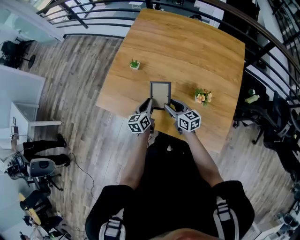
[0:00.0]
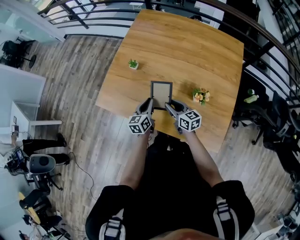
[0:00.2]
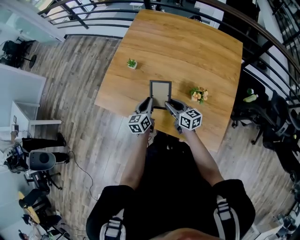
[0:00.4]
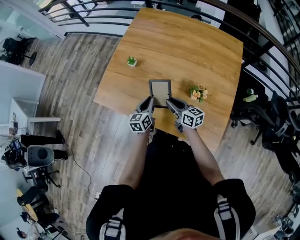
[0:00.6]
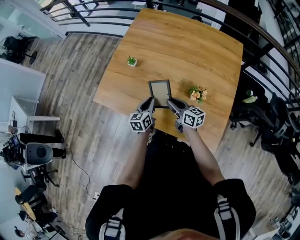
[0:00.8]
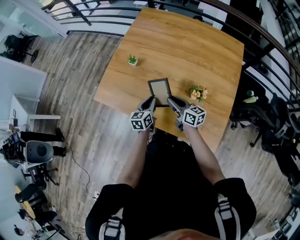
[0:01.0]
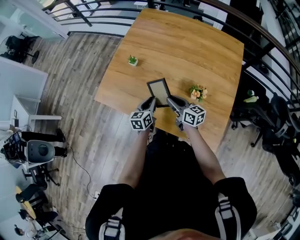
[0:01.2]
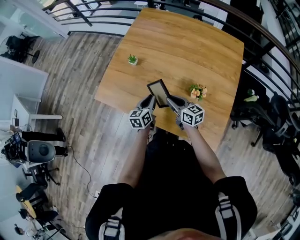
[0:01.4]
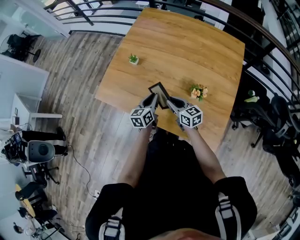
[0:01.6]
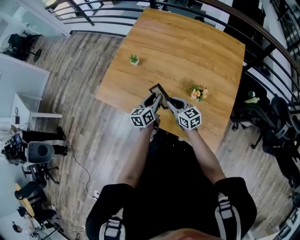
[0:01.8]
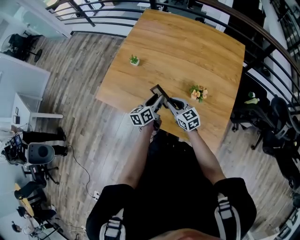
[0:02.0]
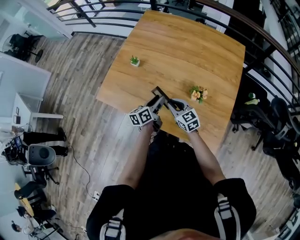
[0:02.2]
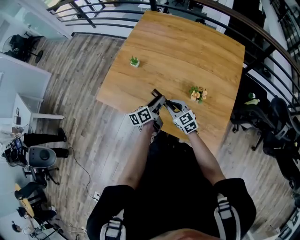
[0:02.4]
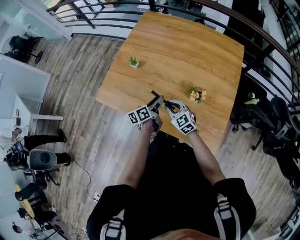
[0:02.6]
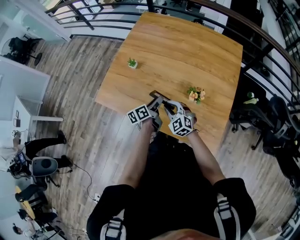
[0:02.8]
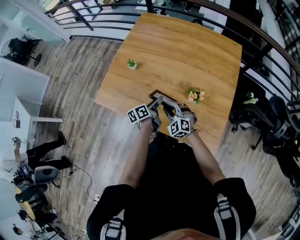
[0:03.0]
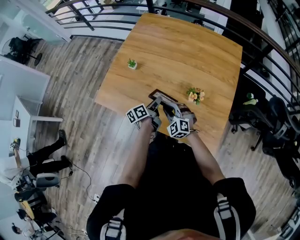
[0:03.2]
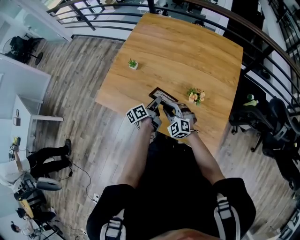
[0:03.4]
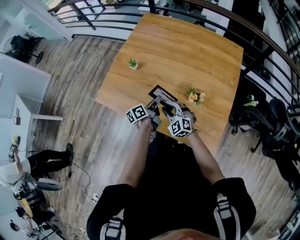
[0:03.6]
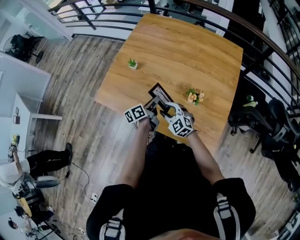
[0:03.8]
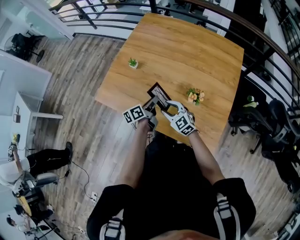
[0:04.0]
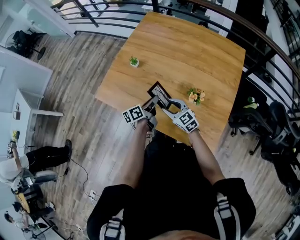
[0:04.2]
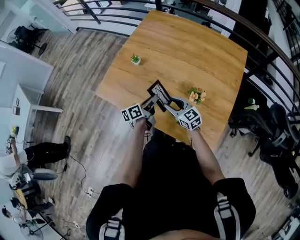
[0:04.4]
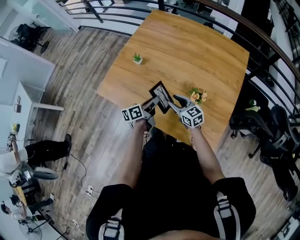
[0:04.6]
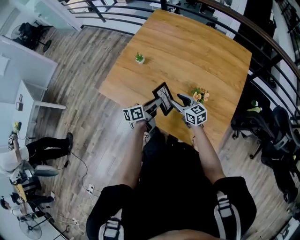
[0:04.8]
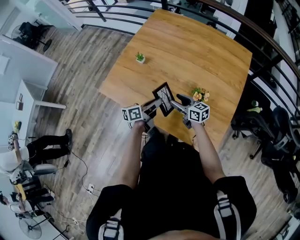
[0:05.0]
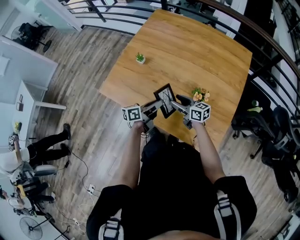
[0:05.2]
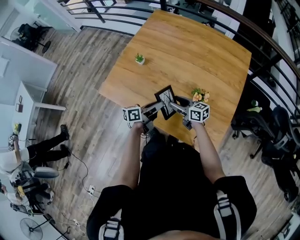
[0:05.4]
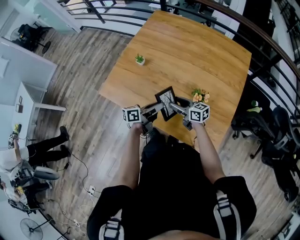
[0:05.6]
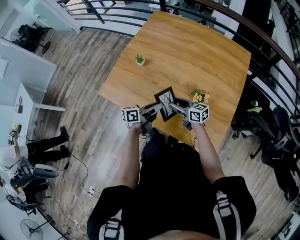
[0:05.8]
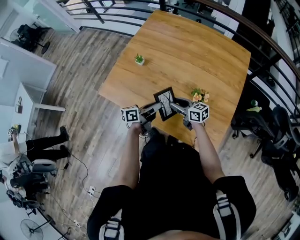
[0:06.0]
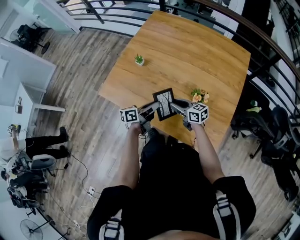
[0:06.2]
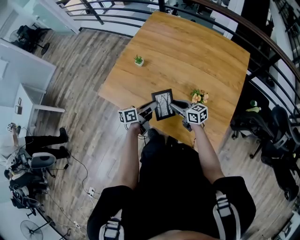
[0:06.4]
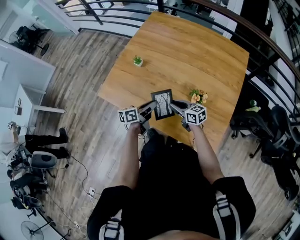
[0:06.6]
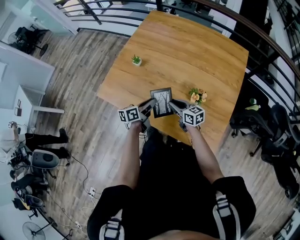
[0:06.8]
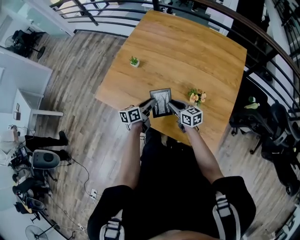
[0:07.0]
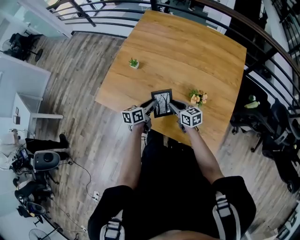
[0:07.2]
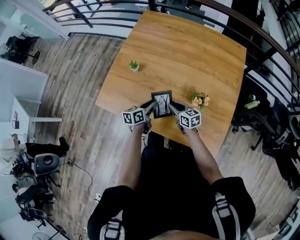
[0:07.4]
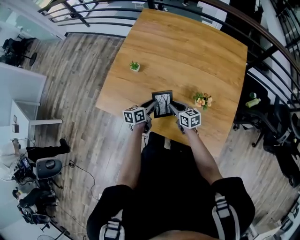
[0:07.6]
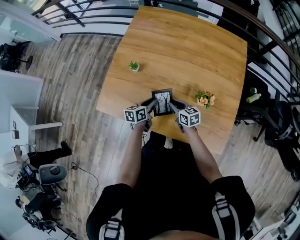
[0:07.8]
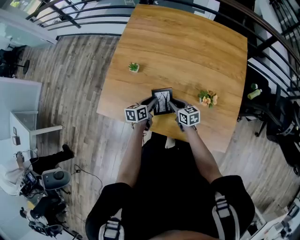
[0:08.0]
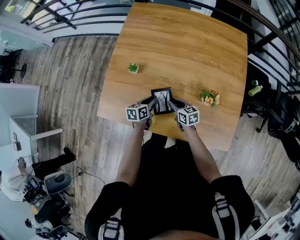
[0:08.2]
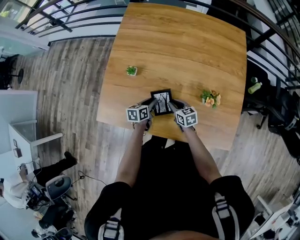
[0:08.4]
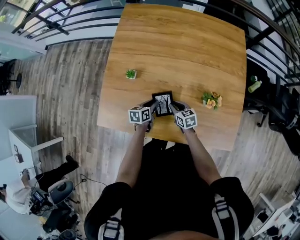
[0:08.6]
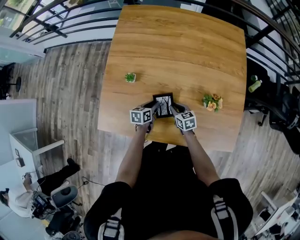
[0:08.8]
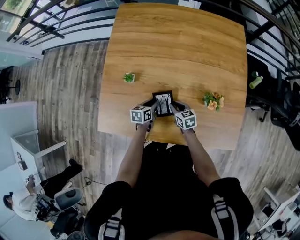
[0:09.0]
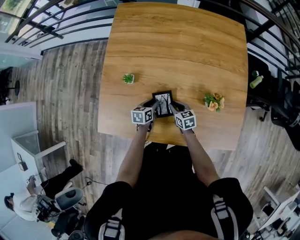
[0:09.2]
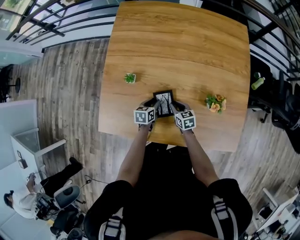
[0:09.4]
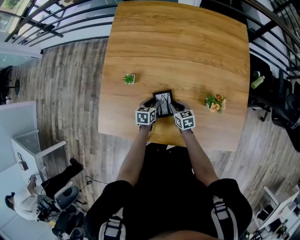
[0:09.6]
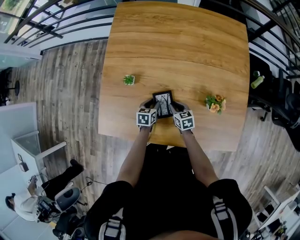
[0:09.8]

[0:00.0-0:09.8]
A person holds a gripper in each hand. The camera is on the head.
0:00.0 to 0:01.4: The left gripper shifts by roughly 5 cm.
0:01.4 to 0:02.8: The right gripper twists about 50 degrees counterclockwise, seen from behind, while the left gripper swivels about 30 degrees, and opens up.
0:02.8 to 0:04.2: The right gripper changes its angle by some 30 degrees.
0:04.2 to 0:05.6: The left gripper swivels approximately 20 degrees, while the right gripper swivels approximately 40 degrees.
0:05.6 to 0:07.0: The right gripper closes its fingers. Meanwhile the left gripper changes place by approximately 5 cm.
0:07.0 to 0:08.4: Both grippers travel together downward, forward and to the left, approximately 15 cm. The left gripper changes its angle by roughly 20 degrees; the right gripper rotates roughly 20 degrees.
0:08.4 to 0:09.8: Both grippers travel together downward, about 5 cm.

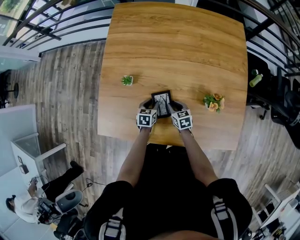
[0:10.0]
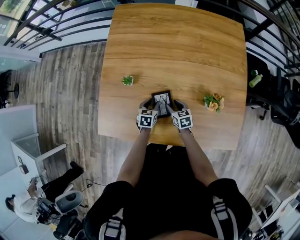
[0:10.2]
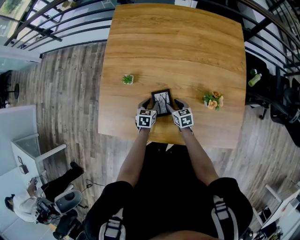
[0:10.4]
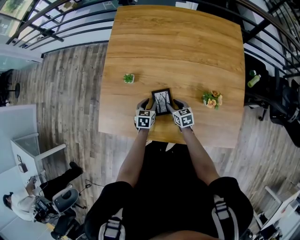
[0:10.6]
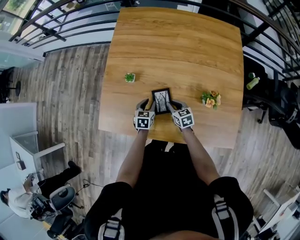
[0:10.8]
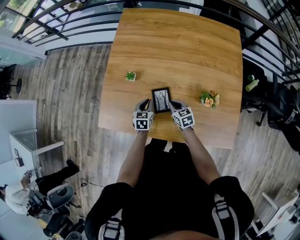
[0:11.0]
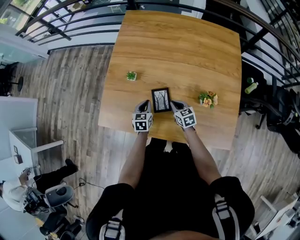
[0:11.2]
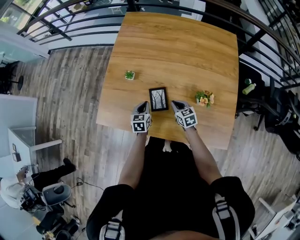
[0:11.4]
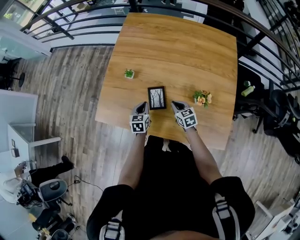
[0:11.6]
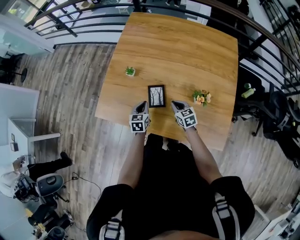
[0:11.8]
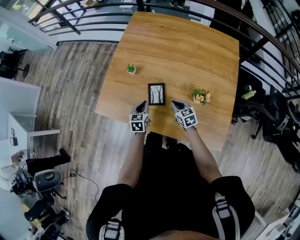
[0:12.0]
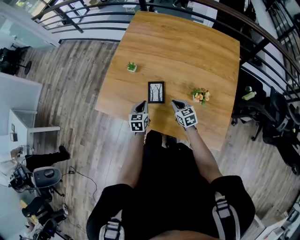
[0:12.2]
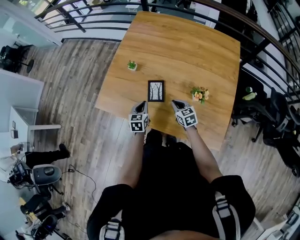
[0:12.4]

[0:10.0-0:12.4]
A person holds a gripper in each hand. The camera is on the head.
0:10.0 to 0:11.2: The grippers both shift upward by about 10 cm. The left gripper closes.
0:11.2 to 0:12.4: The grippers both shift backward by roughly 10 cm.

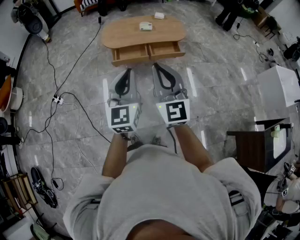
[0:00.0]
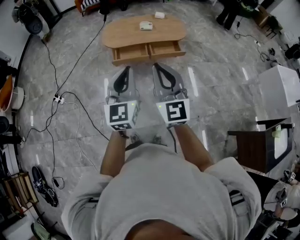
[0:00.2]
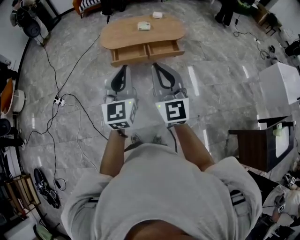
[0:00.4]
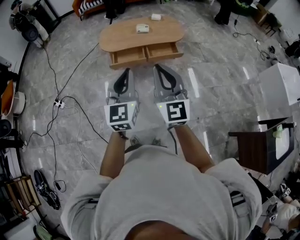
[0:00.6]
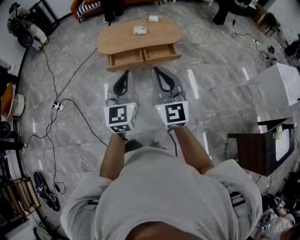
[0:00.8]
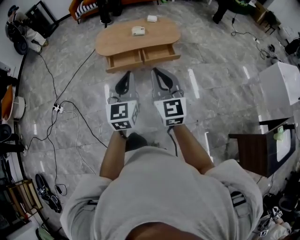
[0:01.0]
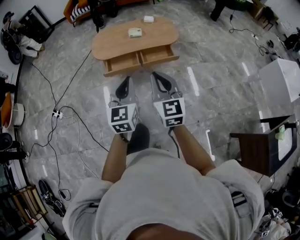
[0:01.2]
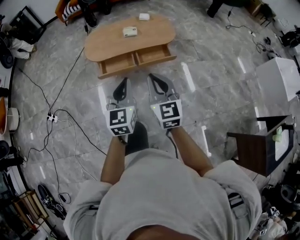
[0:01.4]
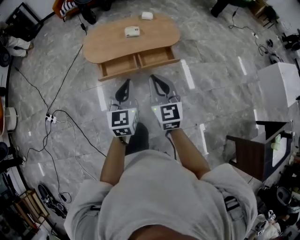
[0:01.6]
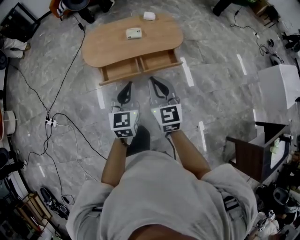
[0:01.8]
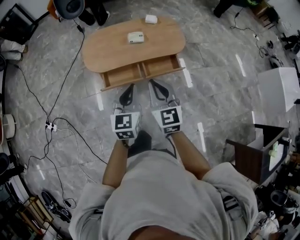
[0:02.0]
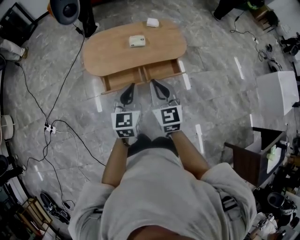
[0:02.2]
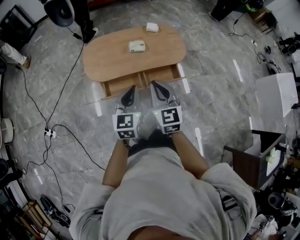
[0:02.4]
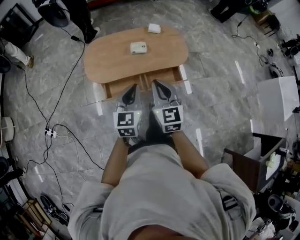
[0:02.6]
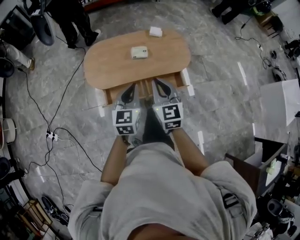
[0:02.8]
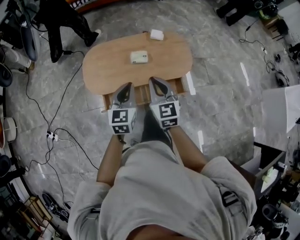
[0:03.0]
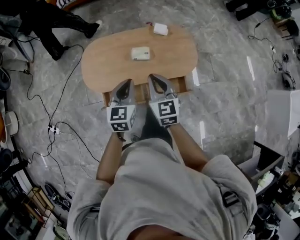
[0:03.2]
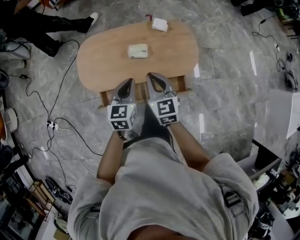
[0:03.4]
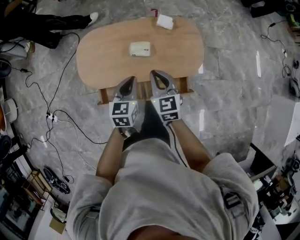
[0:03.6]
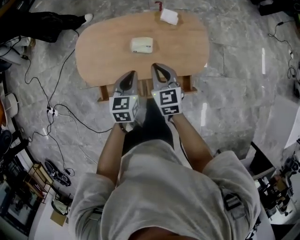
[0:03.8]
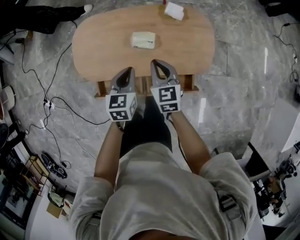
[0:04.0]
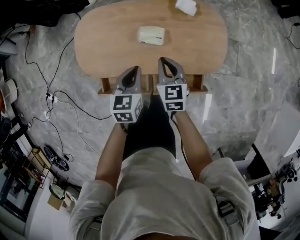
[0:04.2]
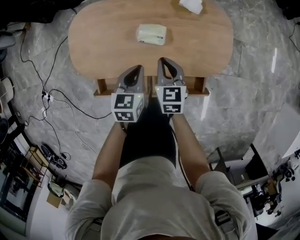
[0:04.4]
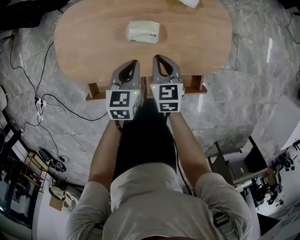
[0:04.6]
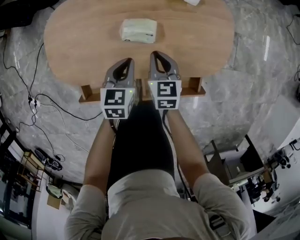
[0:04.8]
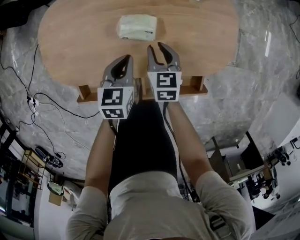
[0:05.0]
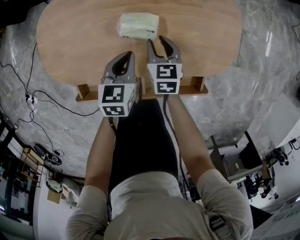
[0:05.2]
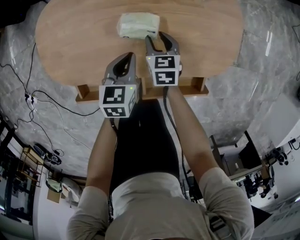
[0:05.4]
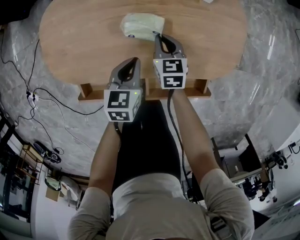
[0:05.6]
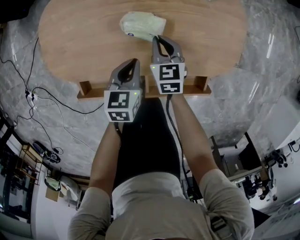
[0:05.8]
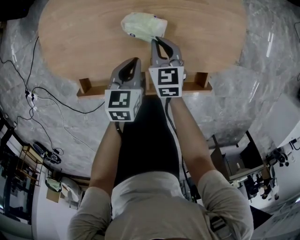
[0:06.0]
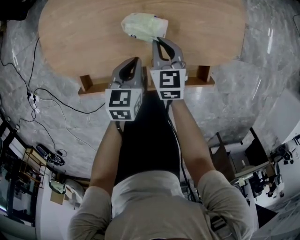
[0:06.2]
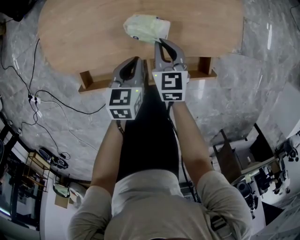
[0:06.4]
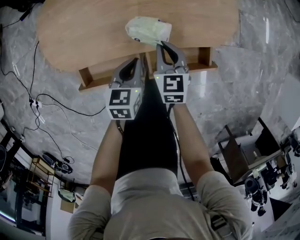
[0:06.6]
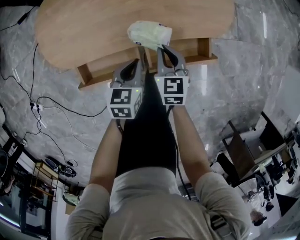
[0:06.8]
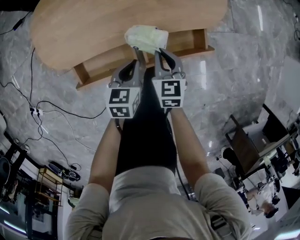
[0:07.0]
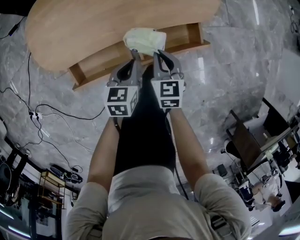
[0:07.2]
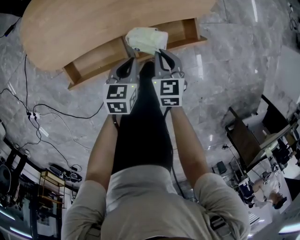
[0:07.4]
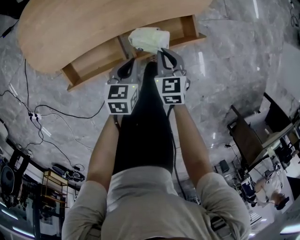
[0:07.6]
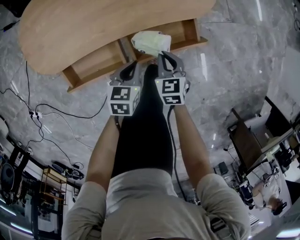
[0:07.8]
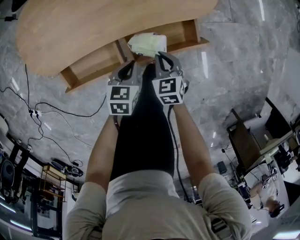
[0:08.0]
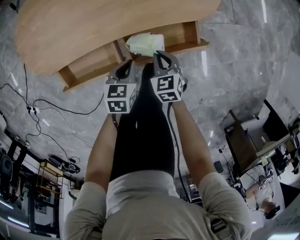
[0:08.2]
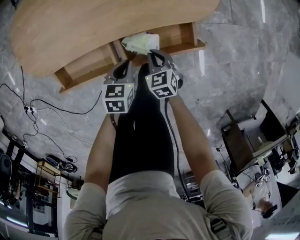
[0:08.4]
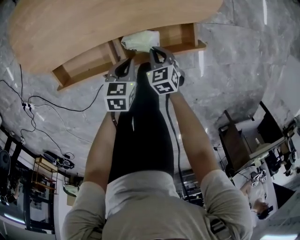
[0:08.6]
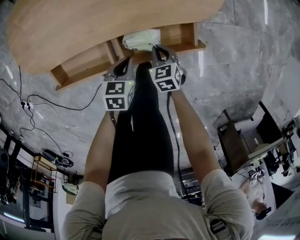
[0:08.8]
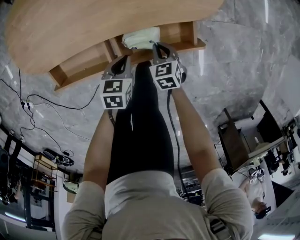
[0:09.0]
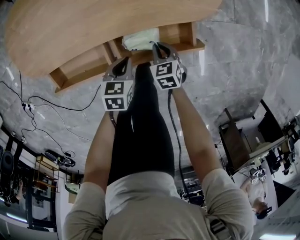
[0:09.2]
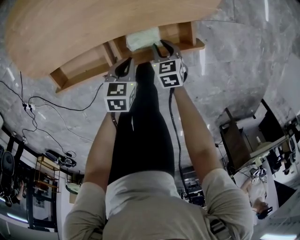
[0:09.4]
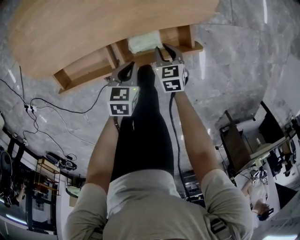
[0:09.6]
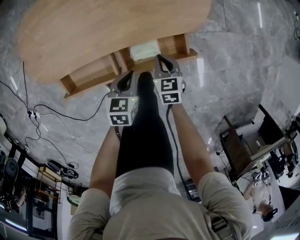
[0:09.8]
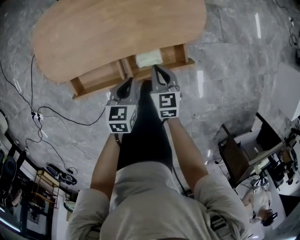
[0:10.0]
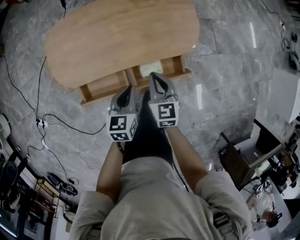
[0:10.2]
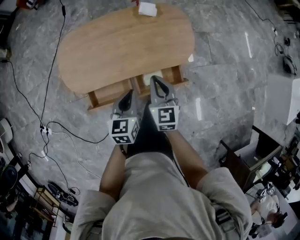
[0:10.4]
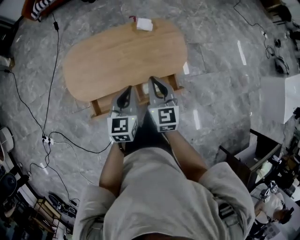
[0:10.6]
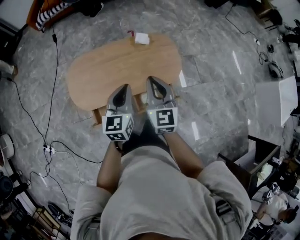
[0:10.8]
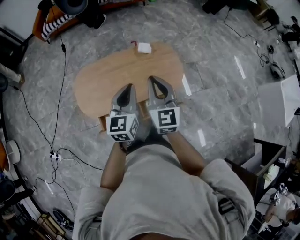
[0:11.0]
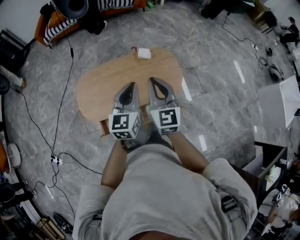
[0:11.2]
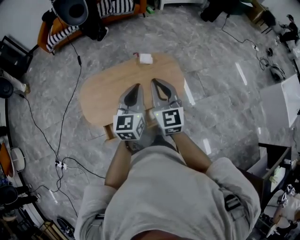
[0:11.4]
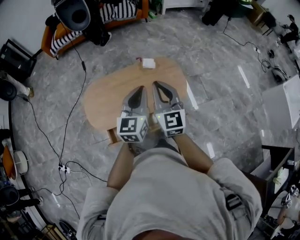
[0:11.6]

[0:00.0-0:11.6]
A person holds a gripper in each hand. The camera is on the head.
0:00.0 to 0:01.4: The left gripper moves forward, to the right and downward, roughly 25 cm. Meanwhile the right gripper goes some 25 cm forward, downward and to the right.
0:01.4 to 0:02.8: The two grippers travel together, forward, roughly 50 cm.
0:02.8 to 0:04.4: Both grippers move forward and downward, approximately 50 cm. The left gripper rotates about 30 degrees. The right gripper rotates roughly 30 degrees.
0:04.4 to 0:05.8: Both grippers travel together downward, about 20 cm. The right gripper opens and closes again.
0:05.8 to 0:07.2: The grippers both shift backward by some 25 cm.
0:07.2 to 0:08.8: Both grippers move downward and to the right, roughly 15 cm. The right gripper changes its angle by some 20 degrees.
0:08.8 to 0:10.2: Both grippers move upward, some 30 cm. The right gripper rotates roughly 30 degrees, and opens, then closes once more.
0:10.2 to 0:11.6: Both grippers travel together upward, some 50 cm. The right gripper turns by about 30 degrees. The left gripper tilts its fingers about 40 degrees upward.
